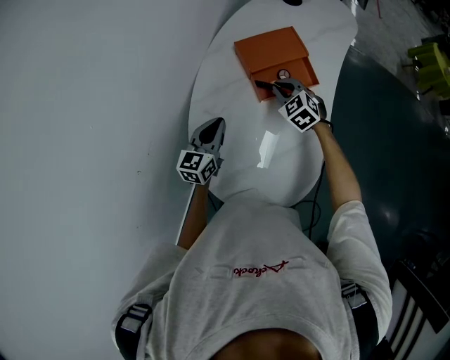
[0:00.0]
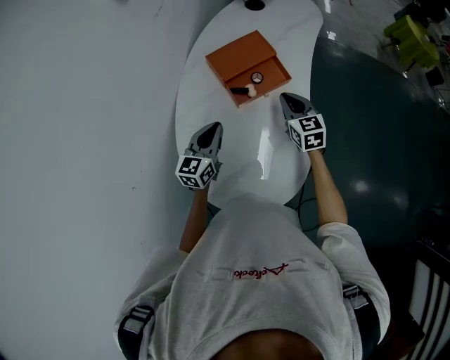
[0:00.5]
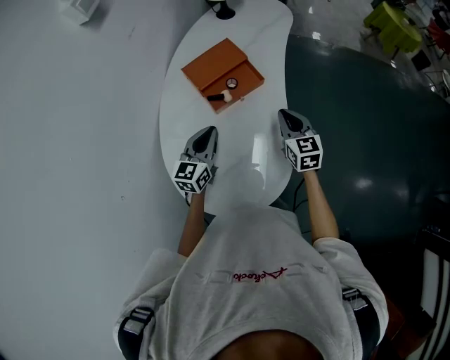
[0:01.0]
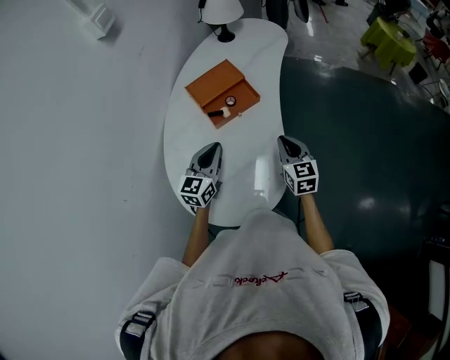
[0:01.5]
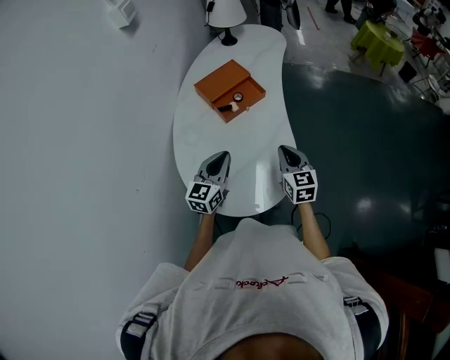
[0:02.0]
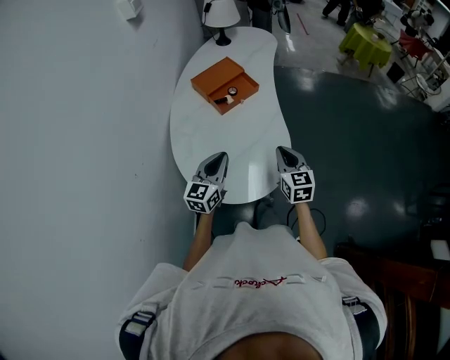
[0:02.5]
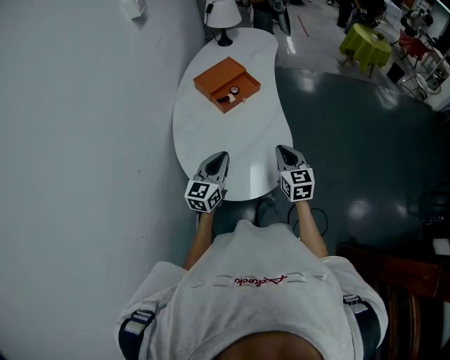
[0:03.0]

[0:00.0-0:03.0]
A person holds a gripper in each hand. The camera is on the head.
0:00.0 to 0:01.5: The left gripper moves to the right and upward, some 15 cm; the right gripper is displaced to the right, backward and upward by some 30 cm, and changes its angle by about 50 degrees.
0:01.5 to 0:03.0: Both grippers move backward, some 15 cm.

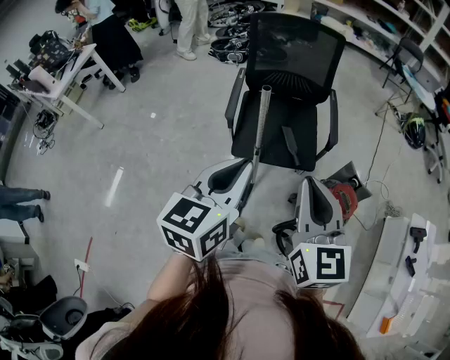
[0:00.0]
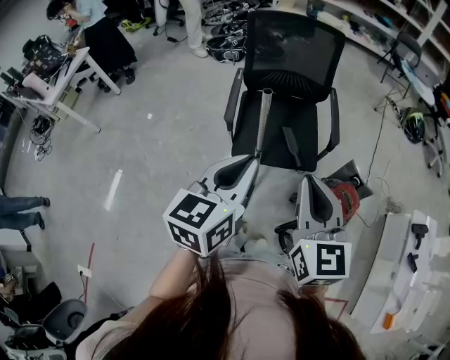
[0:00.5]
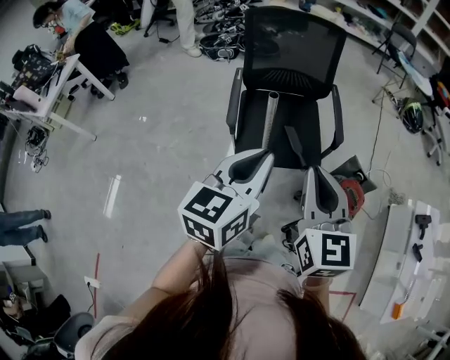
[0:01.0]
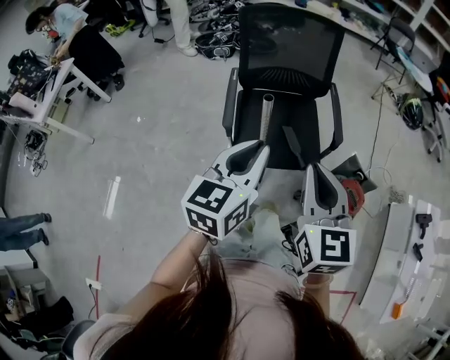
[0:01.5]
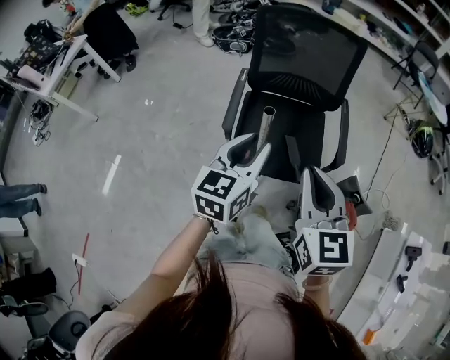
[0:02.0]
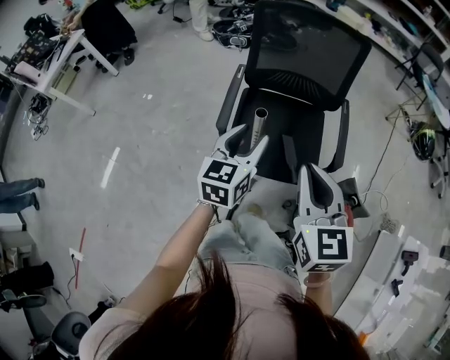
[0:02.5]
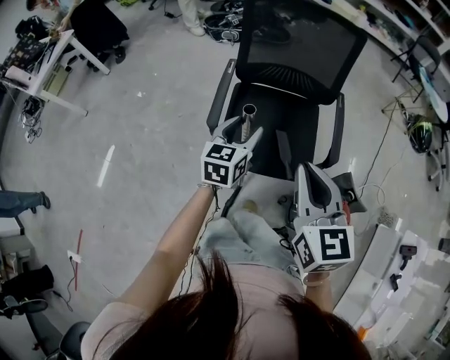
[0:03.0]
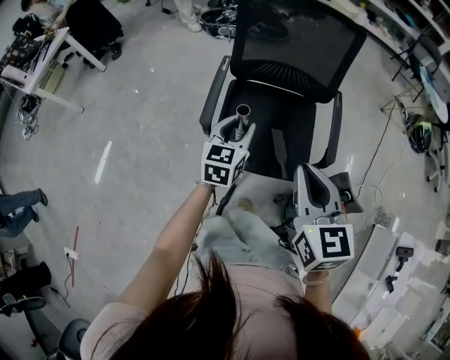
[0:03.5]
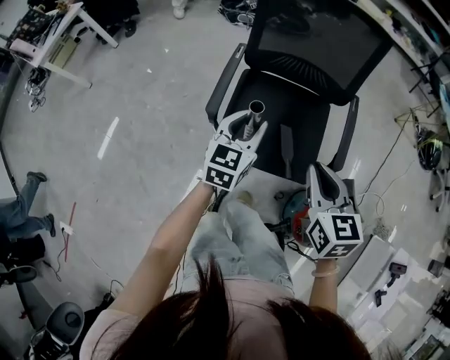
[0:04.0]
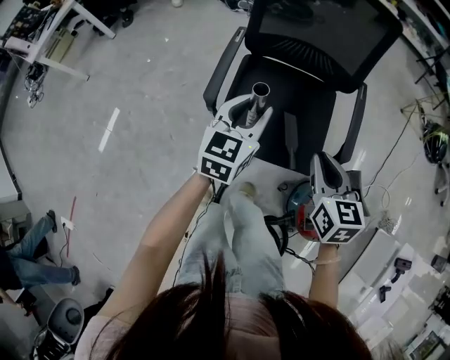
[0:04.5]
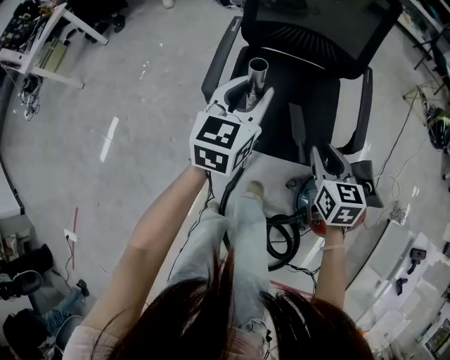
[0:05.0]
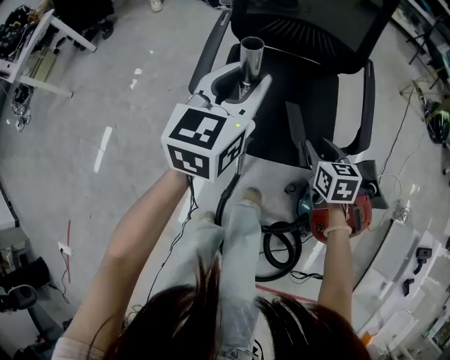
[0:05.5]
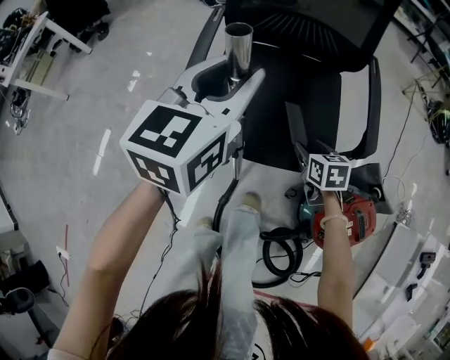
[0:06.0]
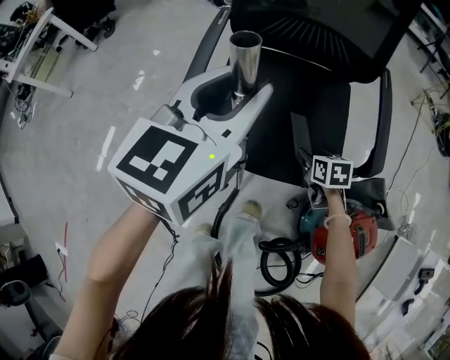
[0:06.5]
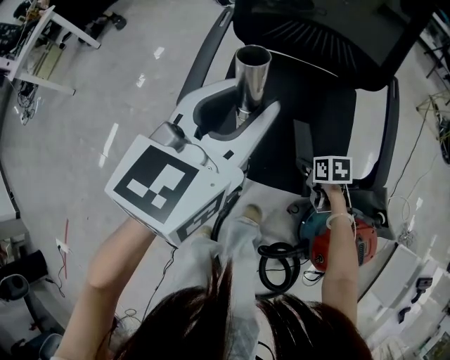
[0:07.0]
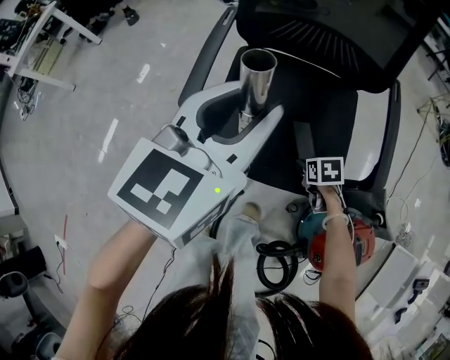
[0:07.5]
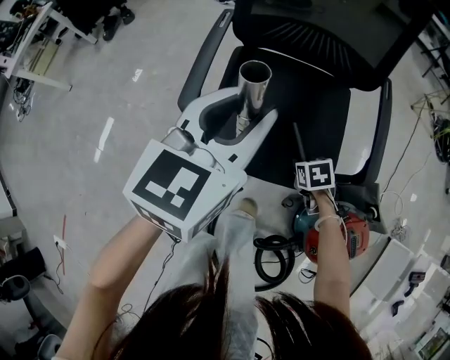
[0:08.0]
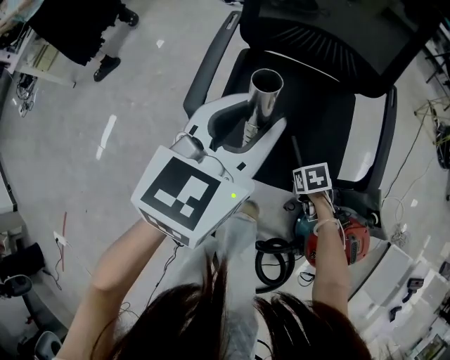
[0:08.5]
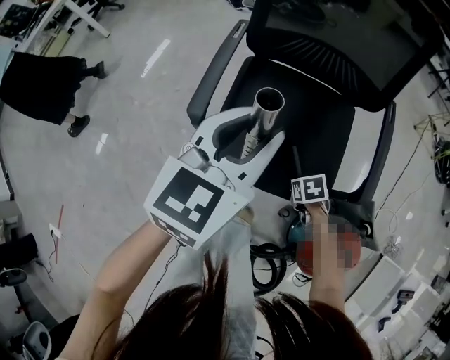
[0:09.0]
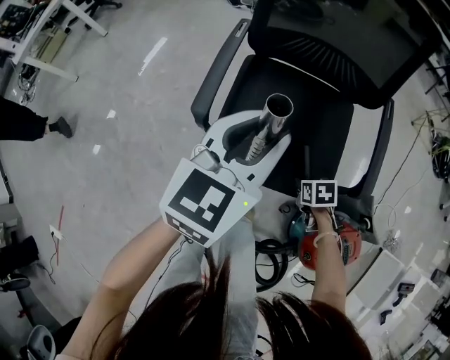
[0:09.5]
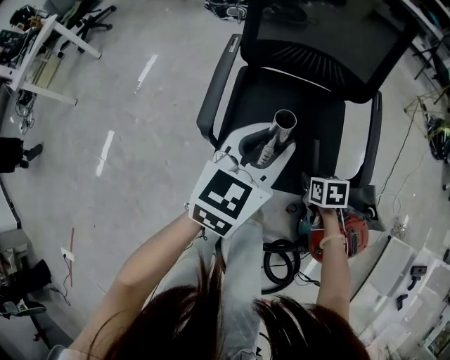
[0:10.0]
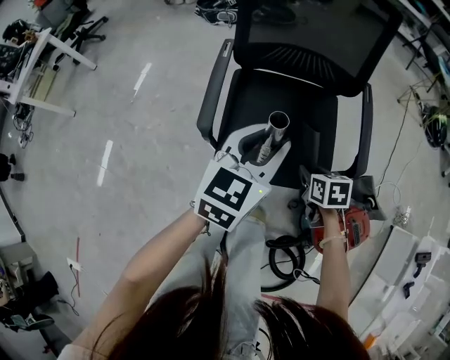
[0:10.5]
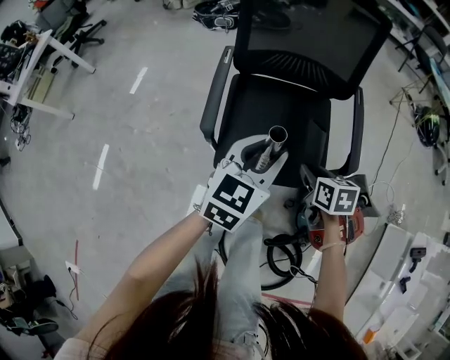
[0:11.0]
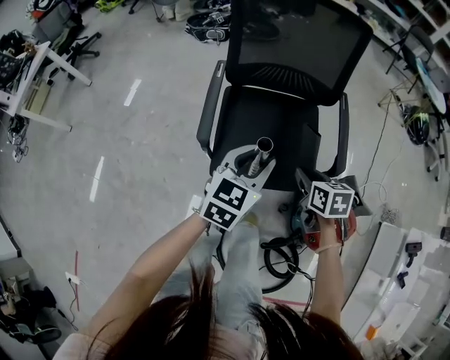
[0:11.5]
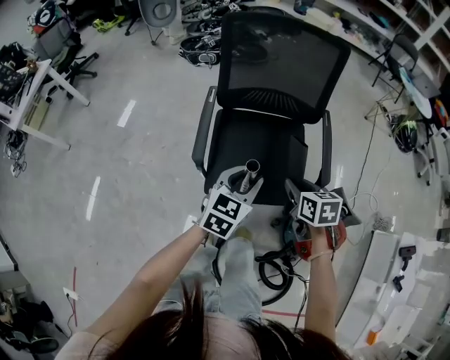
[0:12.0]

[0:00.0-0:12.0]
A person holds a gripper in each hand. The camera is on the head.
0:00.0 to 0:02.0: The grippers both shift forward by roughly 20 cm. The left gripper opens its fingers.
0:02.0 to 0:04.0: The right gripper is displaced downward, forward and to the right by roughly 20 cm. Meanwhile the left gripper heads downward and forward, covering roughly 20 cm.
0:04.0 to 0:06.0: The right gripper travels downward by roughly 40 cm, turns by some 20 degrees, and opens.
0:06.0 to 0:08.0: The right gripper goes approximately 5 cm downward, rotates roughly 20 degrees, and closes its fingers.
0:08.0 to 0:10.0: The right gripper heads upward, covering some 10 cm.
0:10.0 to 0:12.0: The left gripper is displaced backward by approximately 5 cm. The right gripper is displaced upward by roughly 25 cm.

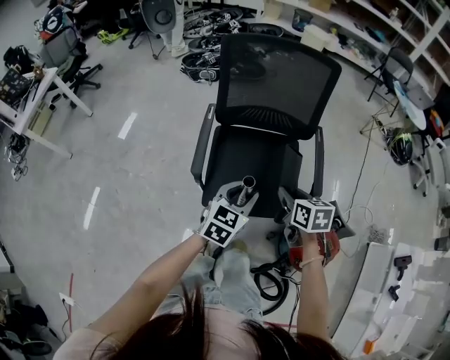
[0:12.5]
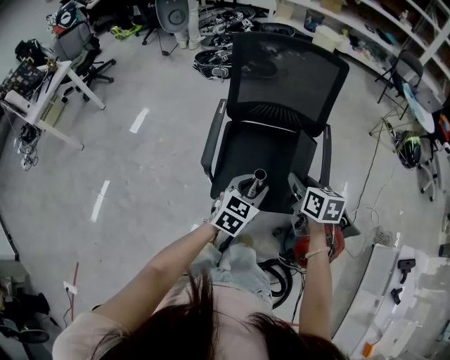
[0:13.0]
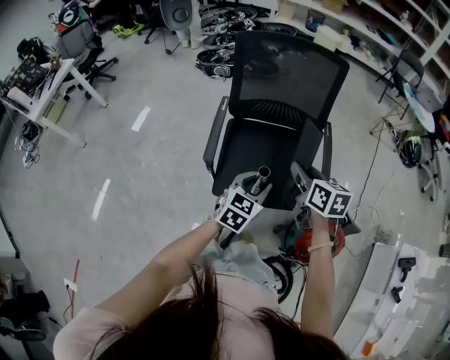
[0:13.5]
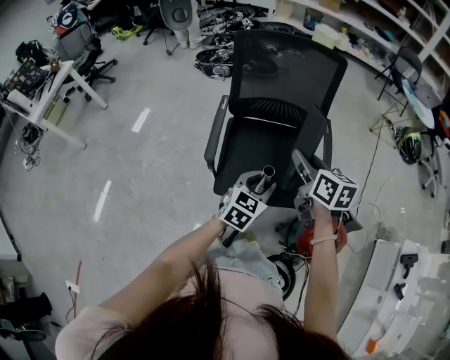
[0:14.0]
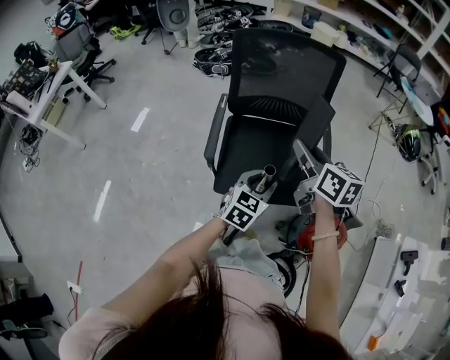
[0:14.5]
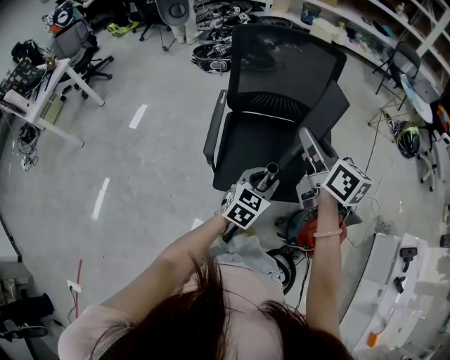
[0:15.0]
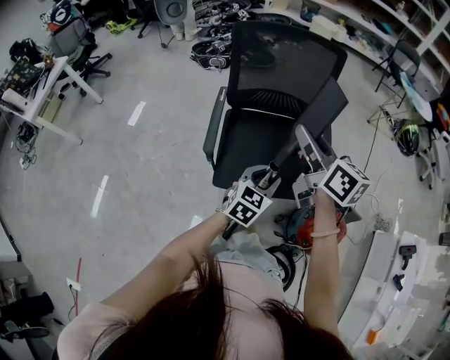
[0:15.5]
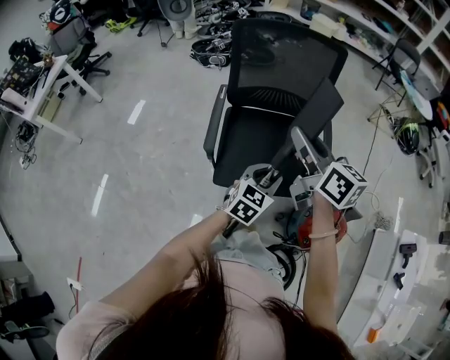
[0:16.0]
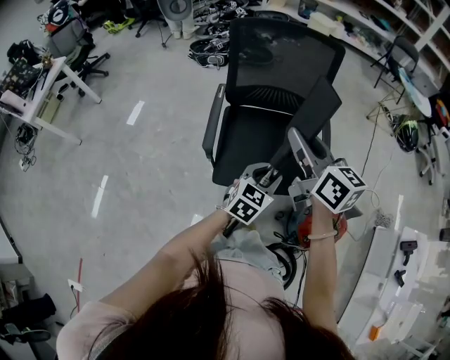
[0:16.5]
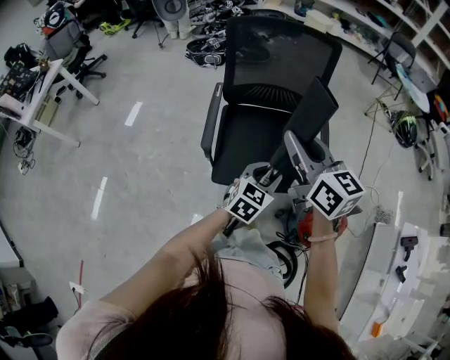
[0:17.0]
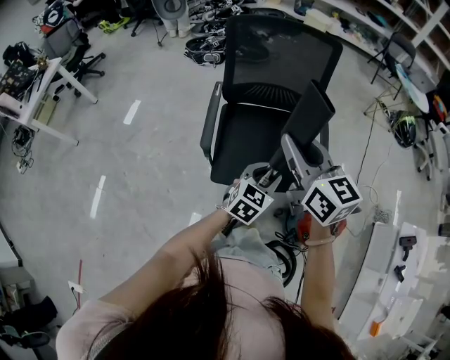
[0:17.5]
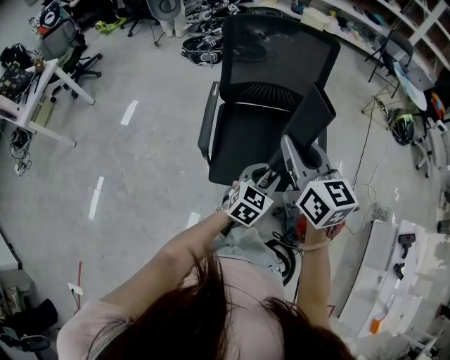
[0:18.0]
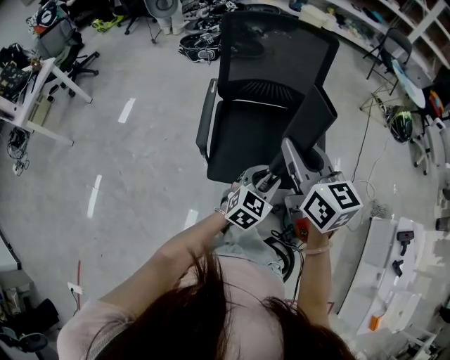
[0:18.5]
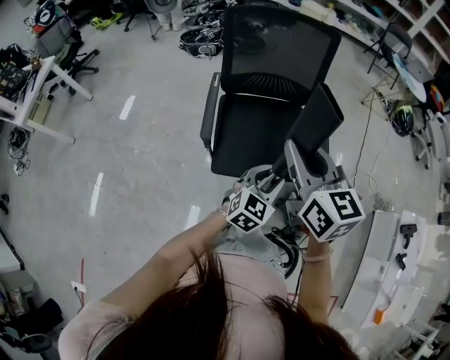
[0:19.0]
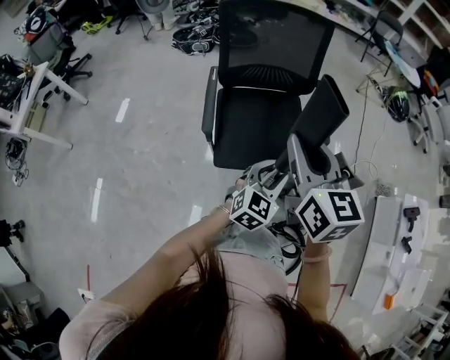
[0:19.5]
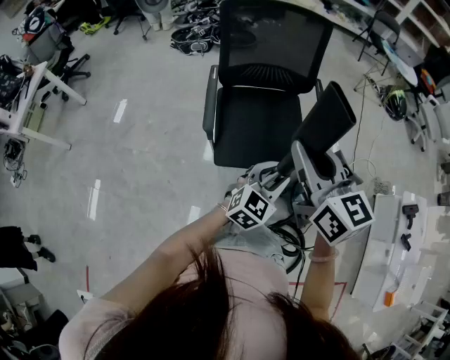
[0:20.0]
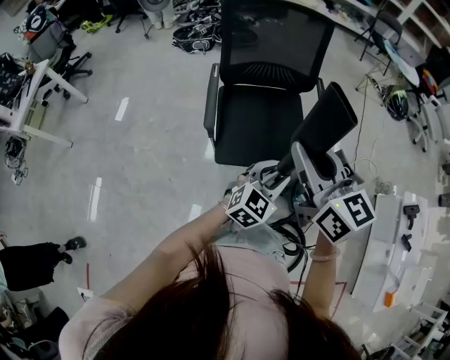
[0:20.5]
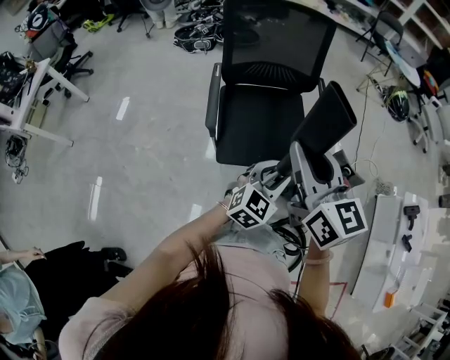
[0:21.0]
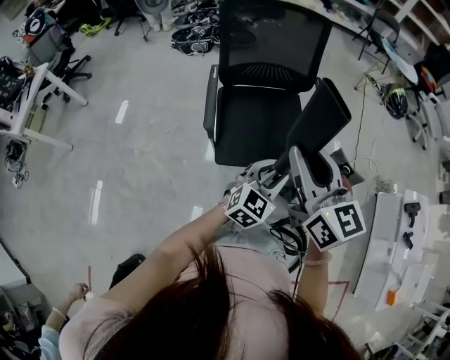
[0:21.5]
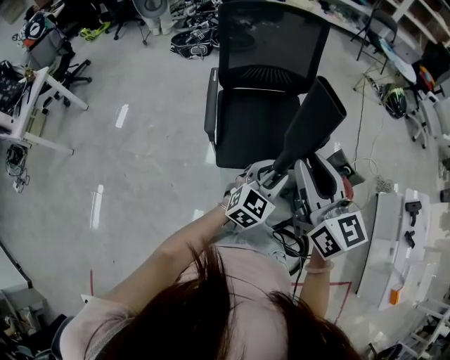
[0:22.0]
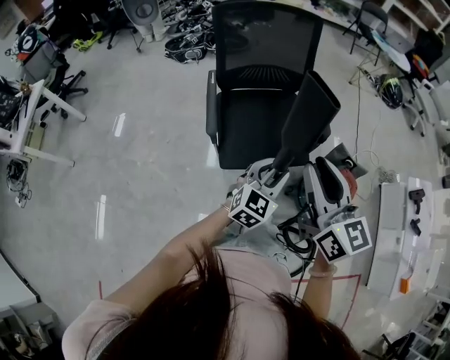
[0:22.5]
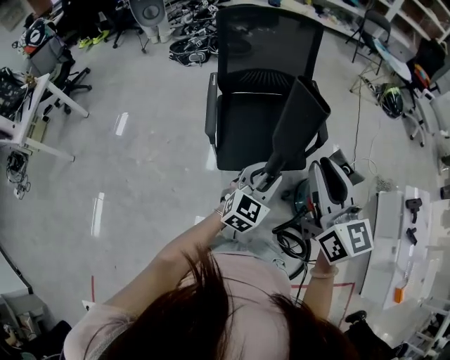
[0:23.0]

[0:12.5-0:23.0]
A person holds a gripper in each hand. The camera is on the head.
0:12.5 to 0:14.5: The left gripper shifts by some 5 cm. The right gripper is displaced upward by about 15 cm, and rotates approximately 30 degrees.
0:14.5 to 0:16.5: The right gripper shifts approximately 5 cm upward.
0:16.5 to 0:19.0: The two grippers go about 5 cm backward.
0:19.0 to 0:21.0: The two grippers go some 5 cm backward.
0:21.0 to 0:23.0: The right gripper moves to the right and backward, some 10 cm.

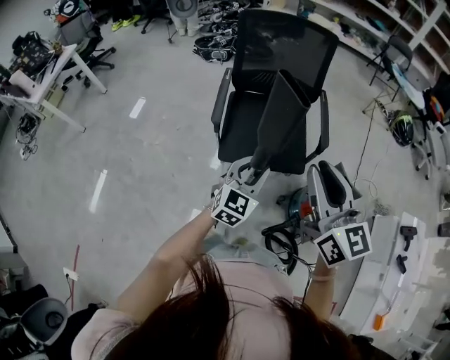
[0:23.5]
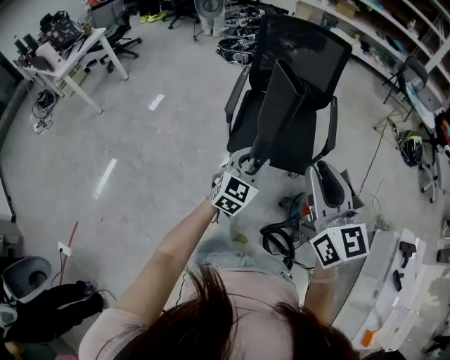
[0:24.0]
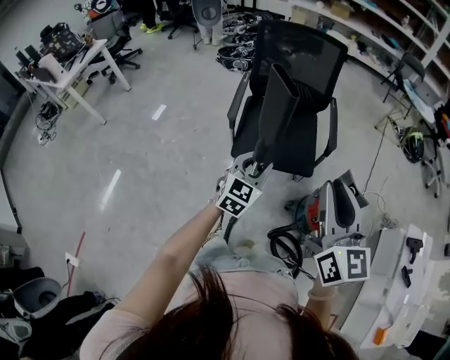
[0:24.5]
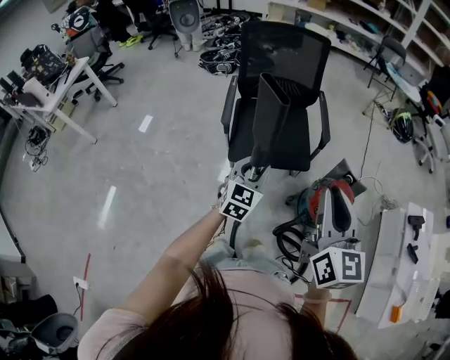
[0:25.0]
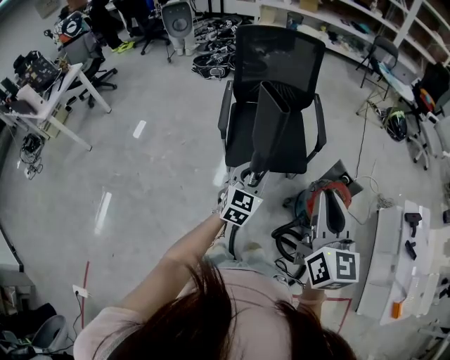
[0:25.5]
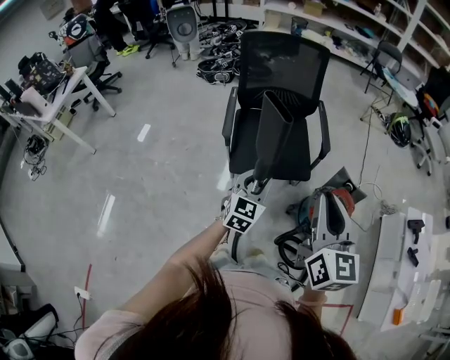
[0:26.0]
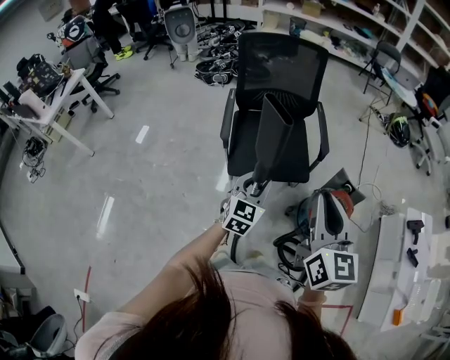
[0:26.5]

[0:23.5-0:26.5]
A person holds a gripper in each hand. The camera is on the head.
0:23.5 to 0:25.0: The right gripper heads backward, covering some 15 cm. Meanwhile the left gripper goes about 10 cm backward.
0:25.0 to 0:26.5: The grippers move only a little.
